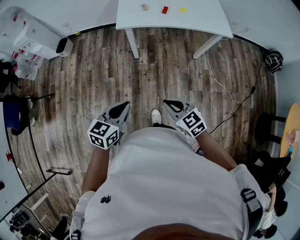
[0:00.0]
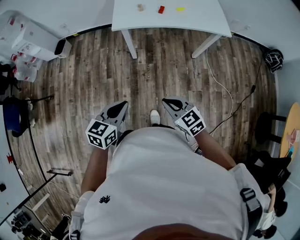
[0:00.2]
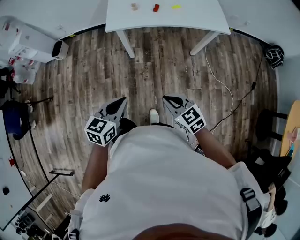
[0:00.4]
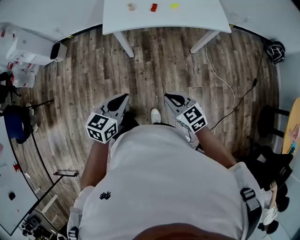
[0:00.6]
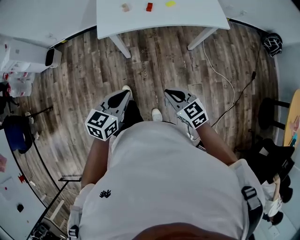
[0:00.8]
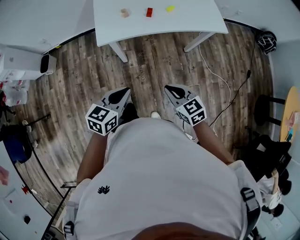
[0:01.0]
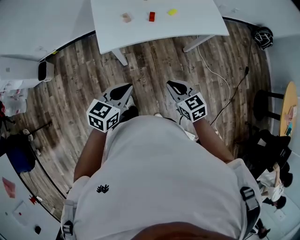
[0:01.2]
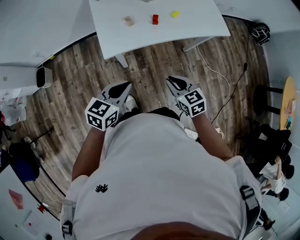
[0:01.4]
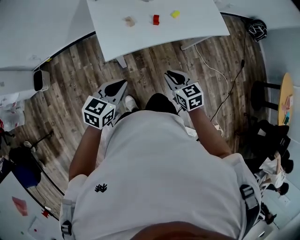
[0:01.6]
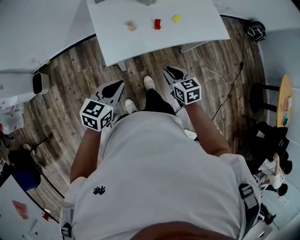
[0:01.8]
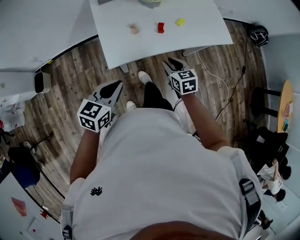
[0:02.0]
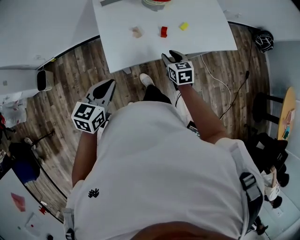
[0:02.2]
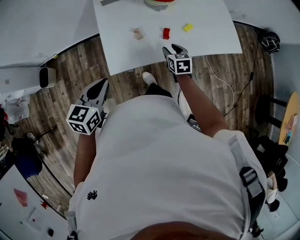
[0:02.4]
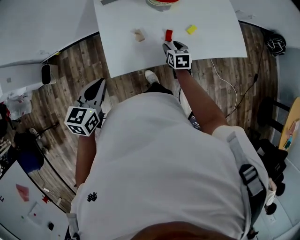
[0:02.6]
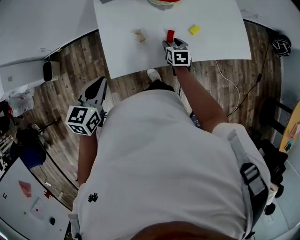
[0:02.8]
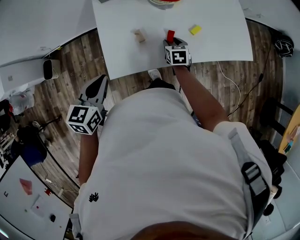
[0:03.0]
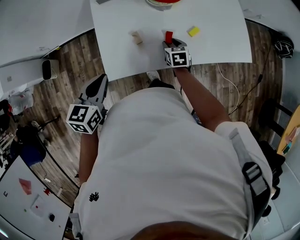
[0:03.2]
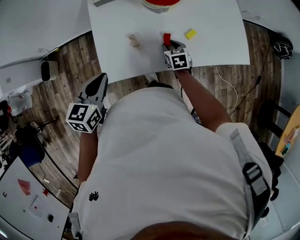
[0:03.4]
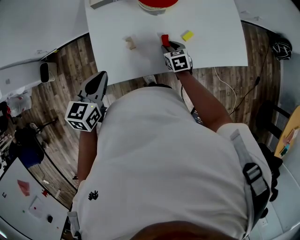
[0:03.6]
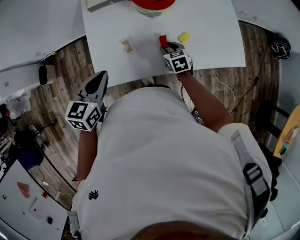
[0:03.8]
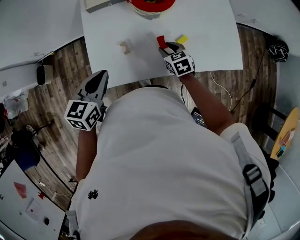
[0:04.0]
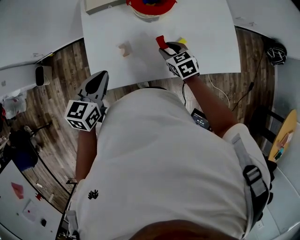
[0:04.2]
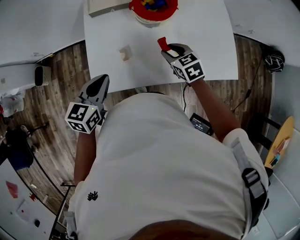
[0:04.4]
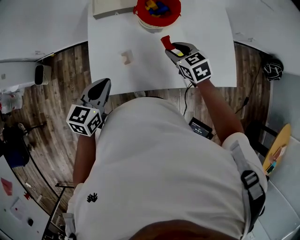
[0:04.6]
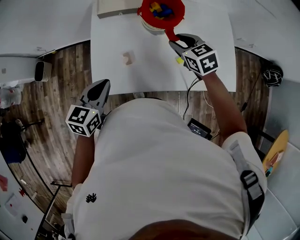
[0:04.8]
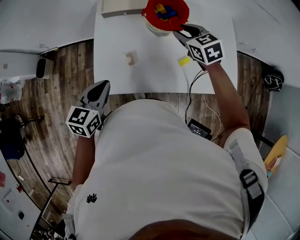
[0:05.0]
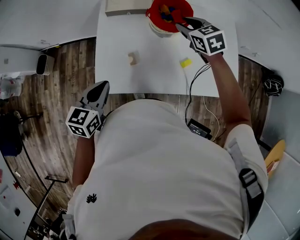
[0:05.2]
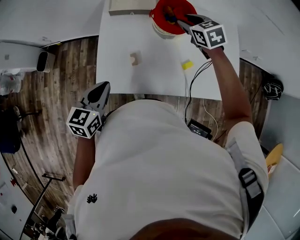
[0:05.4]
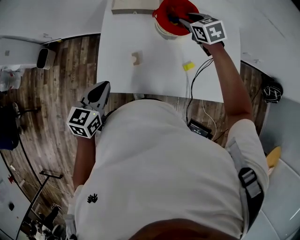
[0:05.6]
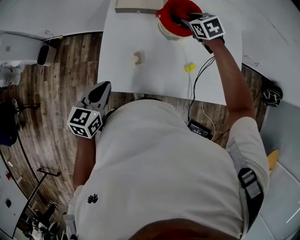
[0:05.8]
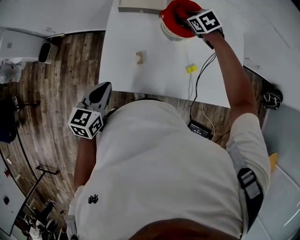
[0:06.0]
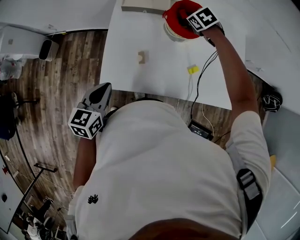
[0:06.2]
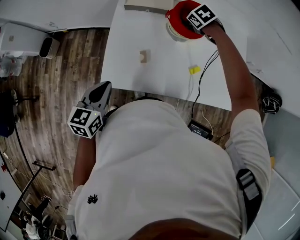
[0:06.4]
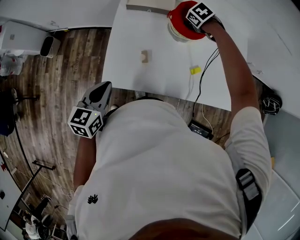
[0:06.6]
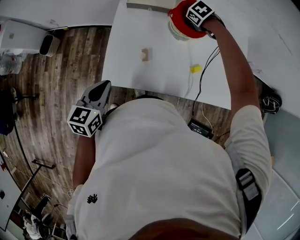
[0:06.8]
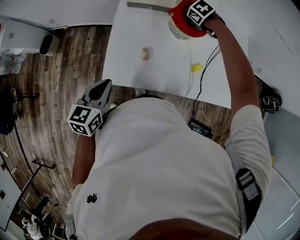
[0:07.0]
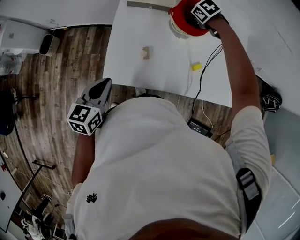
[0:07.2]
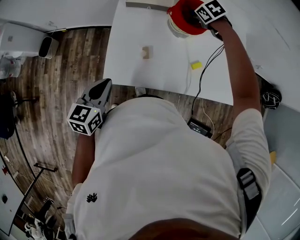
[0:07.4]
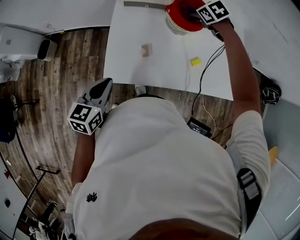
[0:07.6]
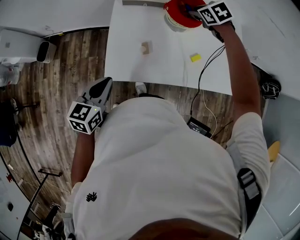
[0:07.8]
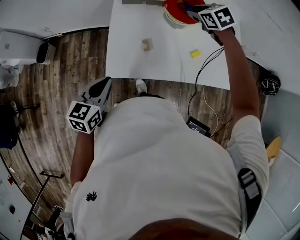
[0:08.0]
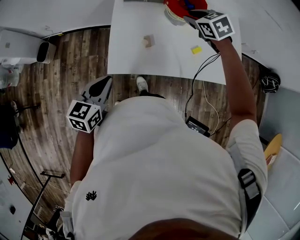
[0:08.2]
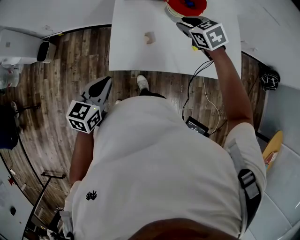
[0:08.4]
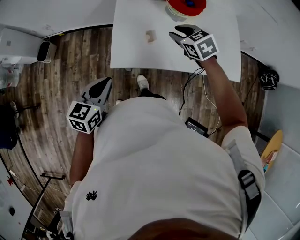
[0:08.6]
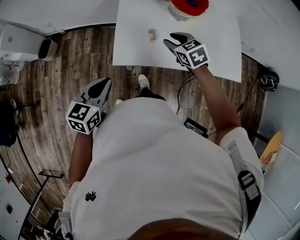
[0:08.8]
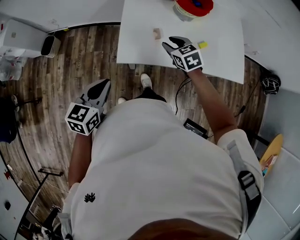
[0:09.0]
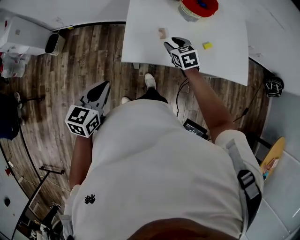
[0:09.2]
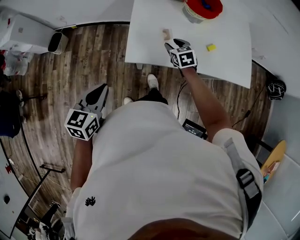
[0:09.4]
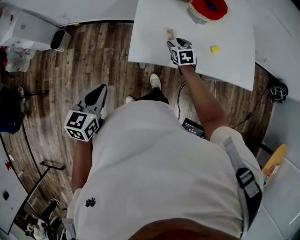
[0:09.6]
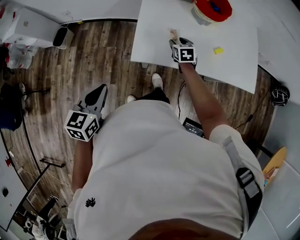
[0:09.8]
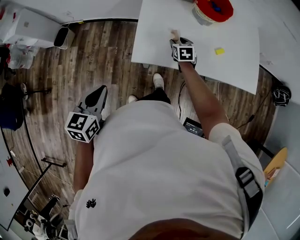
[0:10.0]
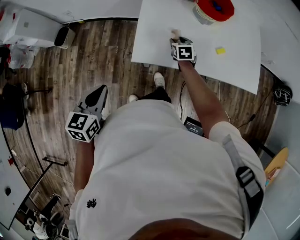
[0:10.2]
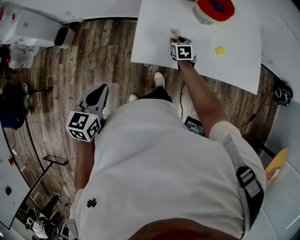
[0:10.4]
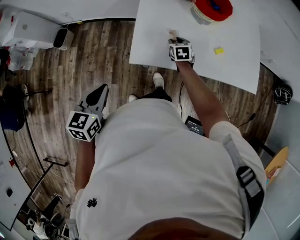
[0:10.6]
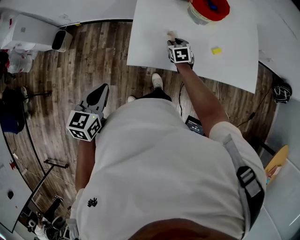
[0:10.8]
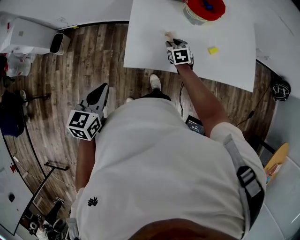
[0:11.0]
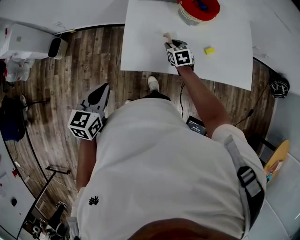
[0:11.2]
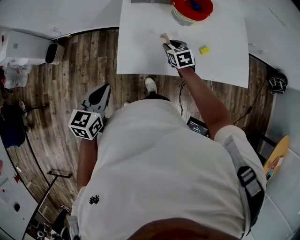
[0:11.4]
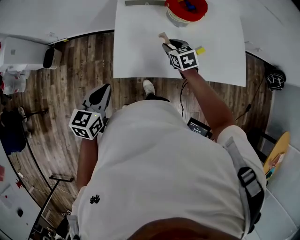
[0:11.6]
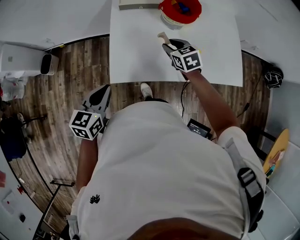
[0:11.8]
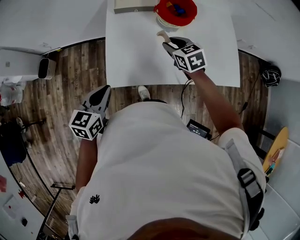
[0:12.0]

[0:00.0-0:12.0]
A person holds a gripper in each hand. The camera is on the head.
0:00.0 to 0:01.6: The right gripper shifts by roughly 35 cm, and swivels some 30 degrees. The left gripper changes place by about 35 cm, and changes its angle by about 20 degrees.
0:01.6 to 0:03.0: The right gripper moves forward and downward, approximately 35 cm, and opens its fingers, while the left gripper moves forward and to the left, roughly 15 cm, and rotates roughly 20 degrees.
0:03.0 to 0:04.4: The right gripper goes approximately 10 cm upward, and changes its angle by roughly 30 degrees. The left gripper is displaced to the right and forward by roughly 10 cm.
0:04.4 to 0:06.0: The right gripper goes about 25 cm forward, and rotates roughly 20 degrees.
0:07.6 to 0:09.0: The right gripper goes approximately 30 cm backward and to the left, and changes its angle by about 20 degrees, while the left gripper shifts about 15 cm backward and to the left.
0:09.0 to 0:10.4: The right gripper moves downward and forward, about 15 cm, and swivels about 20 degrees, while the left gripper goes roughly 5 cm to the left.
0:10.4 to 0:12.0: The left gripper is displaced forward and to the right by roughly 15 cm, while the right gripper is displaced upward and to the right by about 20 cm.

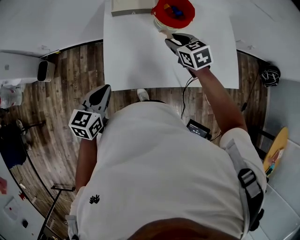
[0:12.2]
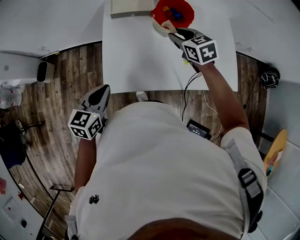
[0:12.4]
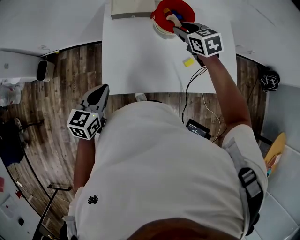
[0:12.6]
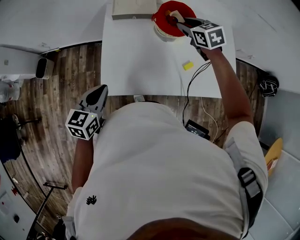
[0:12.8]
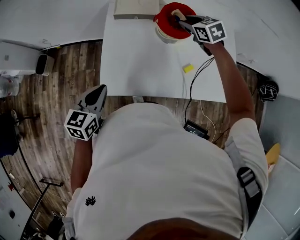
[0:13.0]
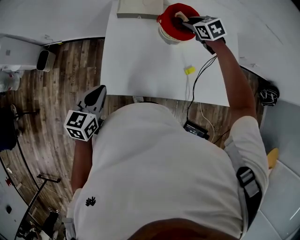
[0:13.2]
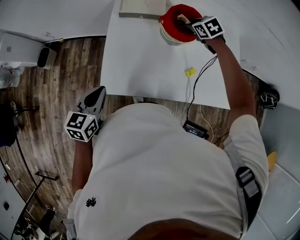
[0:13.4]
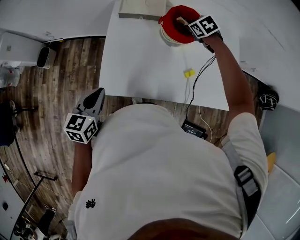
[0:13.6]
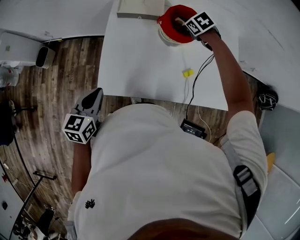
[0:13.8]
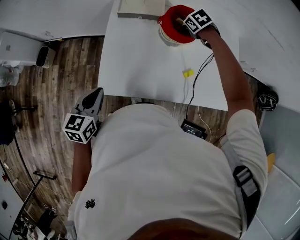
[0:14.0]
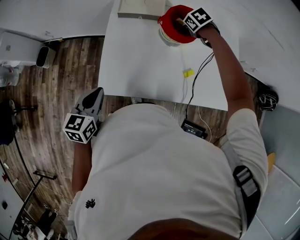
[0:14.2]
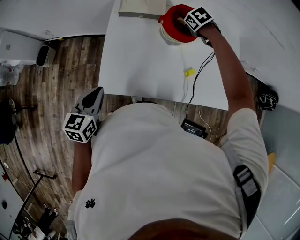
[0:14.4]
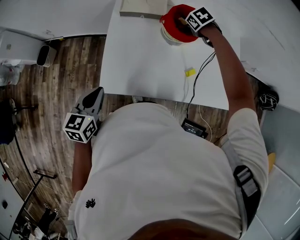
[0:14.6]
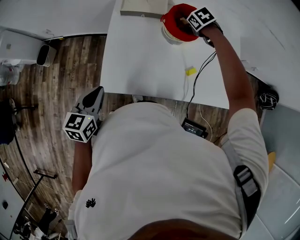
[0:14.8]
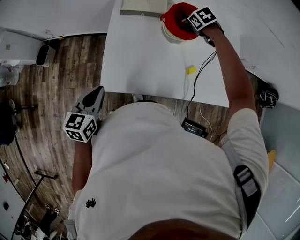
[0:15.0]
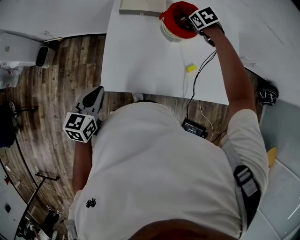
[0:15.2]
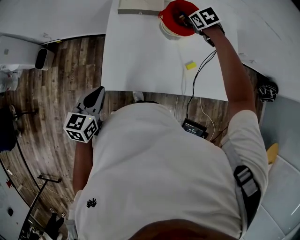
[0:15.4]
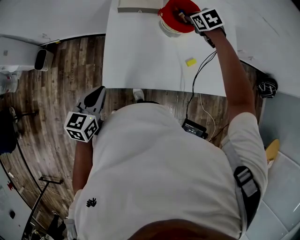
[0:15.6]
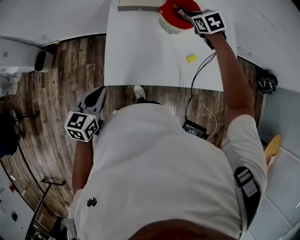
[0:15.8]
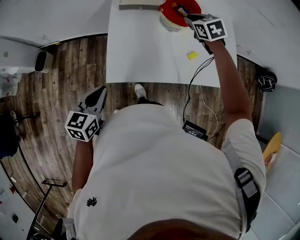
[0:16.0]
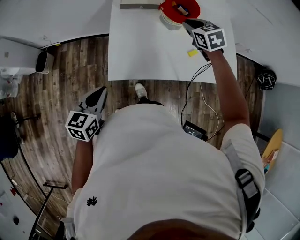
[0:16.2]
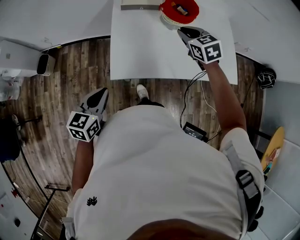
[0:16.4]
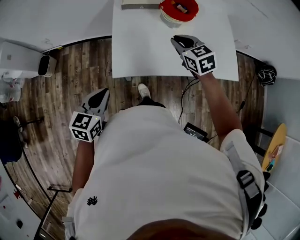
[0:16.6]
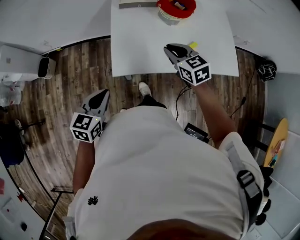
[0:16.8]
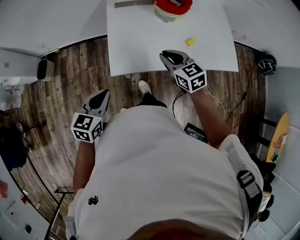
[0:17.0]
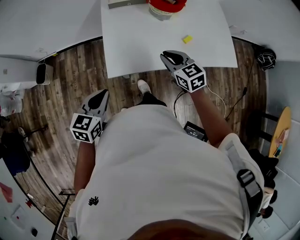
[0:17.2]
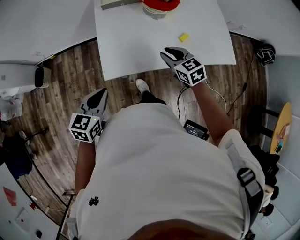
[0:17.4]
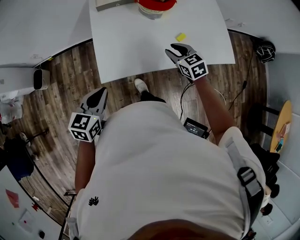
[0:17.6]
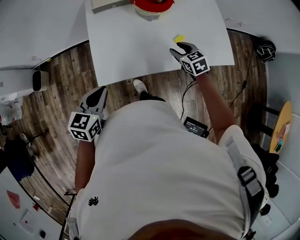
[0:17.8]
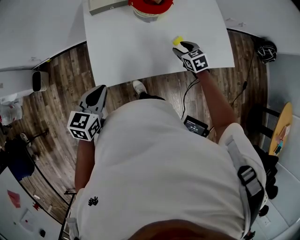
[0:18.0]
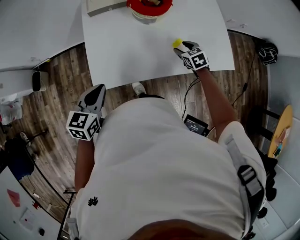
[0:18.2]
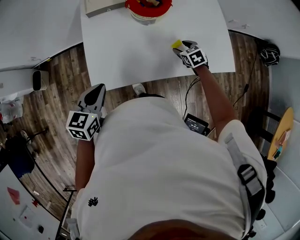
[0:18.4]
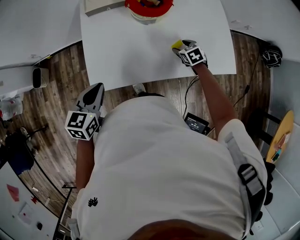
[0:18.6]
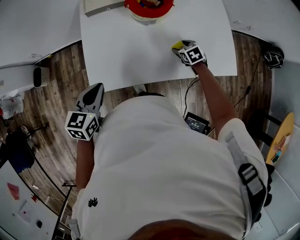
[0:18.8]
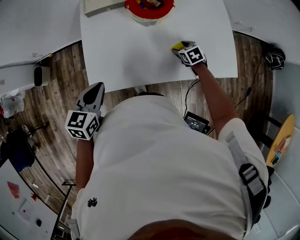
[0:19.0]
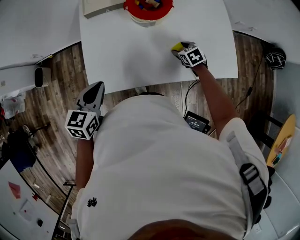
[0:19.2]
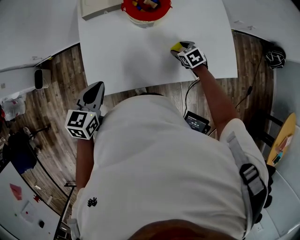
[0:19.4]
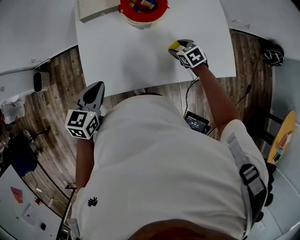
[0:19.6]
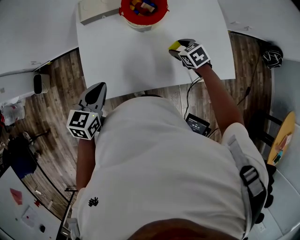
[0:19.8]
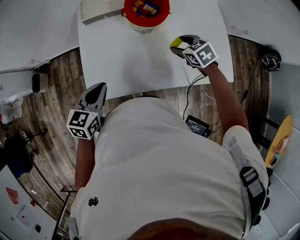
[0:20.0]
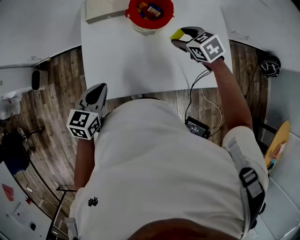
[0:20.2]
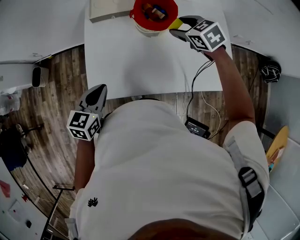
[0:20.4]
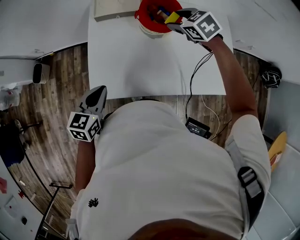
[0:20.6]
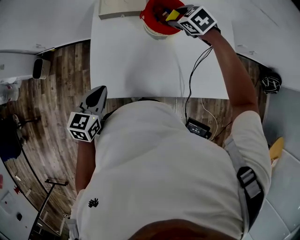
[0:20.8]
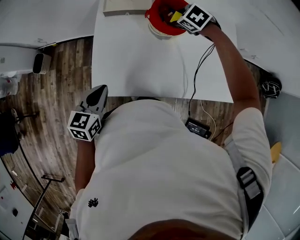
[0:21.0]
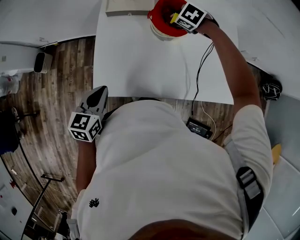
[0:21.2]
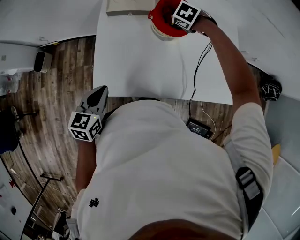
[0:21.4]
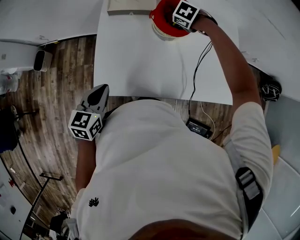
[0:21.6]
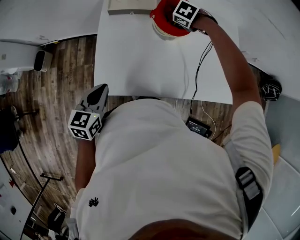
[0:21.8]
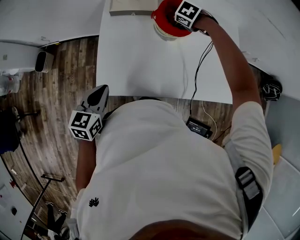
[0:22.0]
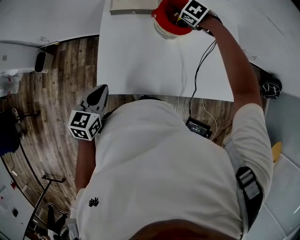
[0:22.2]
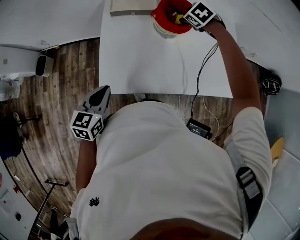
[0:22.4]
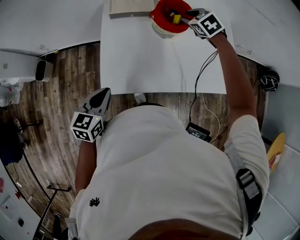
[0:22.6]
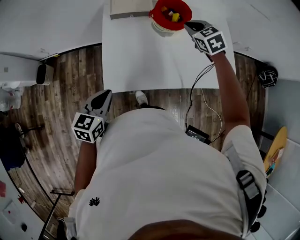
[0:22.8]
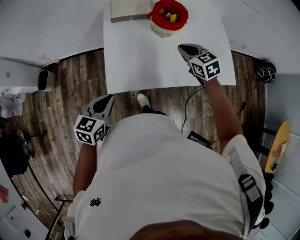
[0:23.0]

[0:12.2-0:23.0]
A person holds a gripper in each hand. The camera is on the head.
0:12.2 to 0:13.8: The right gripper travels forward and to the right by about 20 cm, and turns by some 30 degrees.
0:13.8 to 0:15.2: The grippers stay close to where they were, moving slightly.
0:15.2 to 0:16.8: The left gripper is displaced backward and to the left by roughly 10 cm; the right gripper goes some 35 cm backward and to the left, and points its fingers roughly 30 degrees further upward.
0:16.8 to 0:18.4: The right gripper heads to the right, downward and forward, covering approximately 30 cm, turns by roughly 20 degrees, and opens, while the left gripper goes approximately 15 cm forward and to the right.
0:18.4 to 0:20.0: The right gripper moves upward, roughly 10 cm; the left gripper changes place by approximately 5 cm.
0:20.0 to 0:21.4: The right gripper moves approximately 10 cm upward and comes back, and changes its angle by approximately 40 degrees.
0:21.4 to 0:23.0: The left gripper shifts by some 10 cm; the right gripper ends up about 25 cm from where it was, points its fingers some 40 degrees further upward, and closes up.

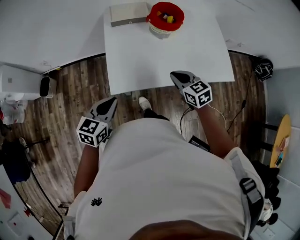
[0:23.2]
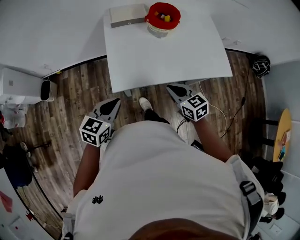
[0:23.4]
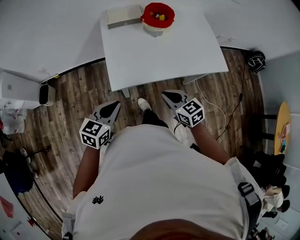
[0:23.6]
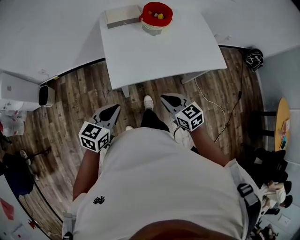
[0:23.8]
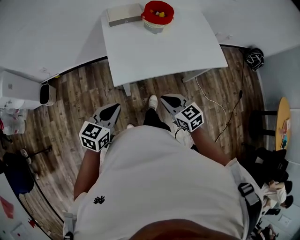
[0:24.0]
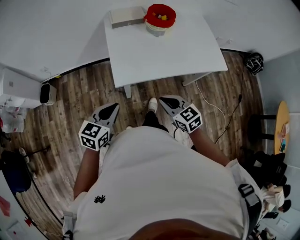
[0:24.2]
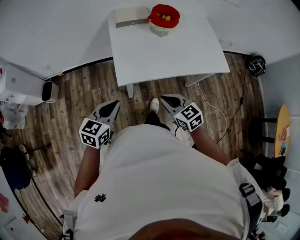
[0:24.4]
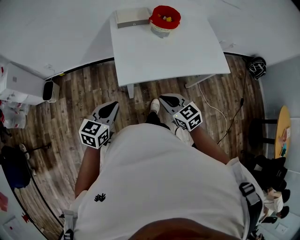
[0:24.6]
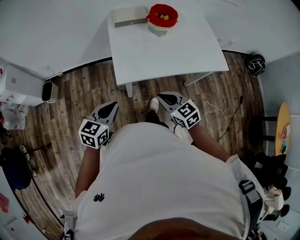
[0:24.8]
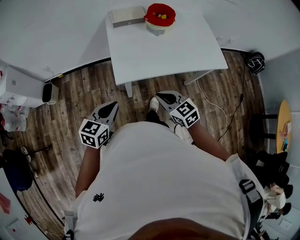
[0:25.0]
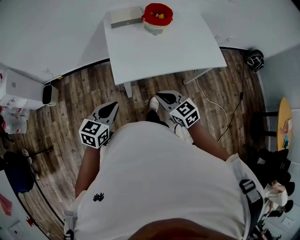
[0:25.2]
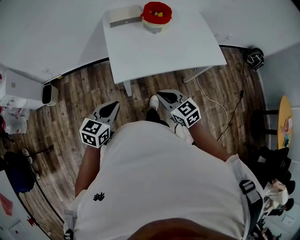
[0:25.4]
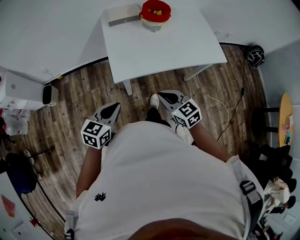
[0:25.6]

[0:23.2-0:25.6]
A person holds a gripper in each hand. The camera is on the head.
0:23.2 to 0:24.4: The left gripper shifts about 5 cm backward; the right gripper heads backward and to the left, covering some 20 cm.
0:24.4 to 0:25.6: The grippers stay close to where they were, moving slightly.
